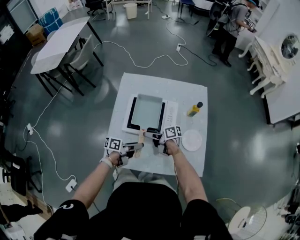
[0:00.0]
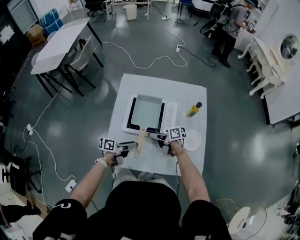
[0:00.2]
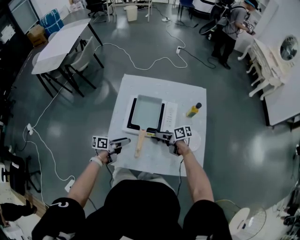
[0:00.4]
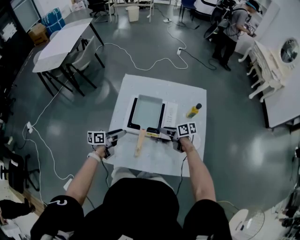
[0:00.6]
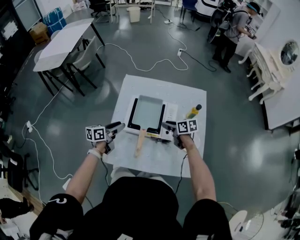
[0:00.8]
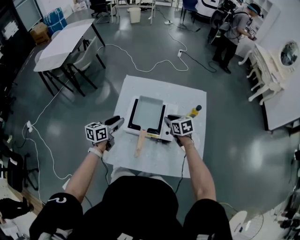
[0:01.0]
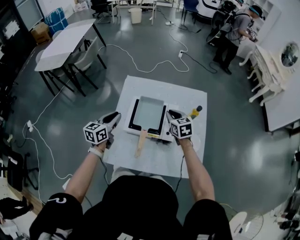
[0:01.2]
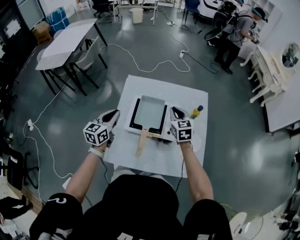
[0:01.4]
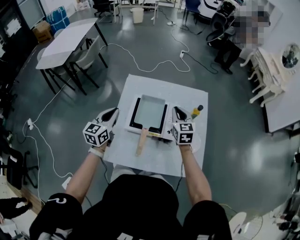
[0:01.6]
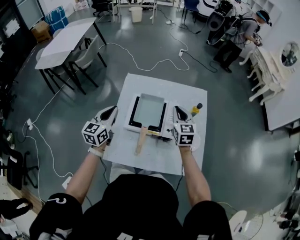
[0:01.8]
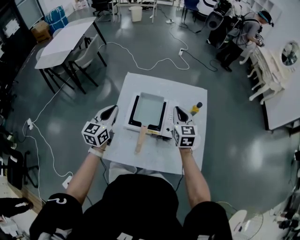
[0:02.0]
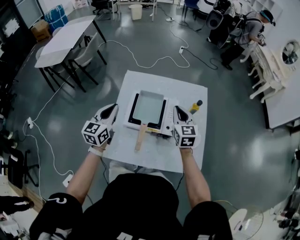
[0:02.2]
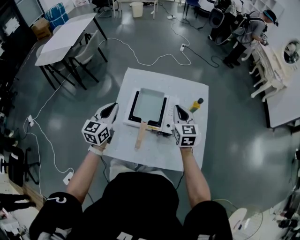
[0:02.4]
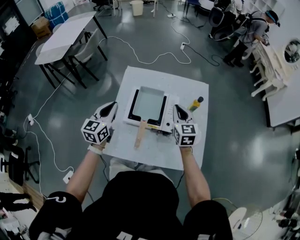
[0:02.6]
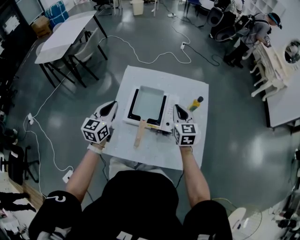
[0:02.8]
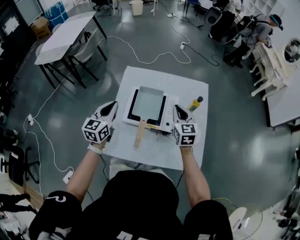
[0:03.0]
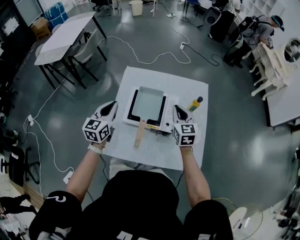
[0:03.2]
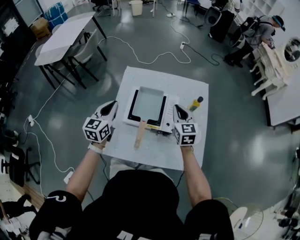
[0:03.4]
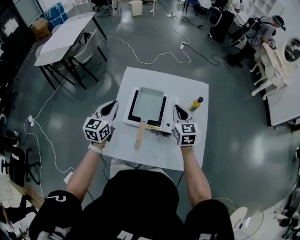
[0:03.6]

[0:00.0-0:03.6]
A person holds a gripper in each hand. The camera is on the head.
0:00.0 to 0:01.8: Both grippers move upward, roughly 20 cm. The left gripper swivels approximately 80 degrees, and closes; the right gripper changes its angle by about 80 degrees, and closes its fingers.
0:01.8 to 0:03.6: The grippers move only a little.

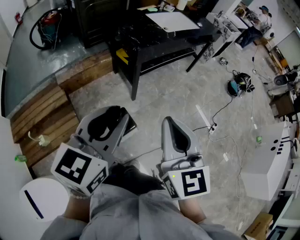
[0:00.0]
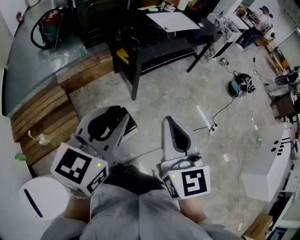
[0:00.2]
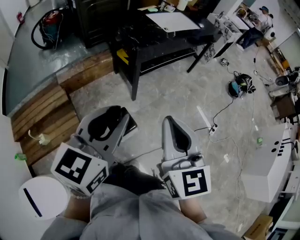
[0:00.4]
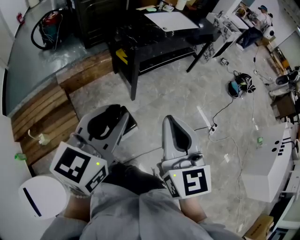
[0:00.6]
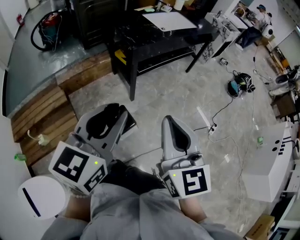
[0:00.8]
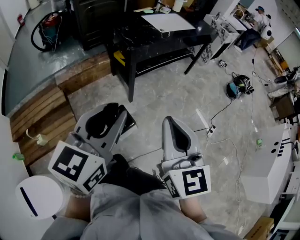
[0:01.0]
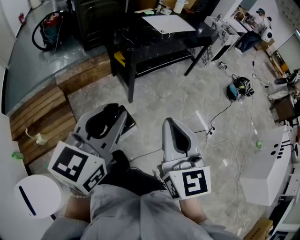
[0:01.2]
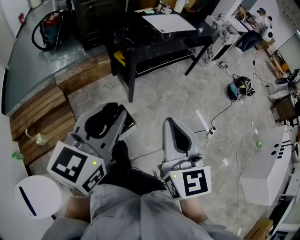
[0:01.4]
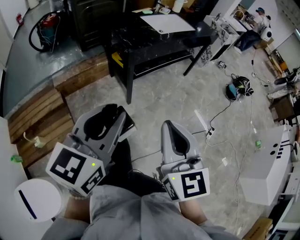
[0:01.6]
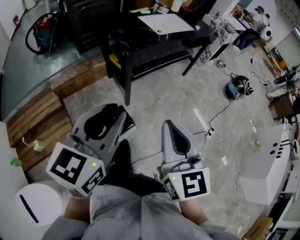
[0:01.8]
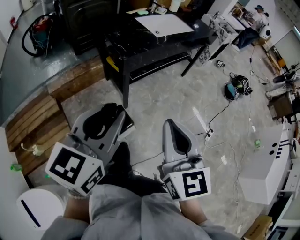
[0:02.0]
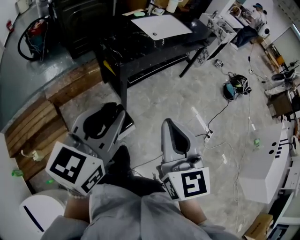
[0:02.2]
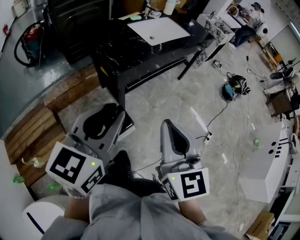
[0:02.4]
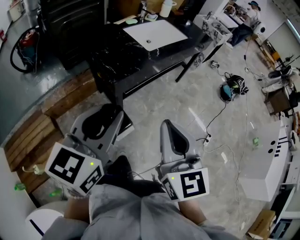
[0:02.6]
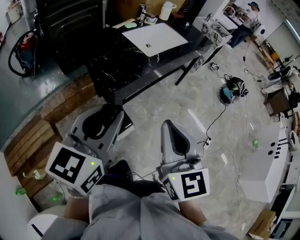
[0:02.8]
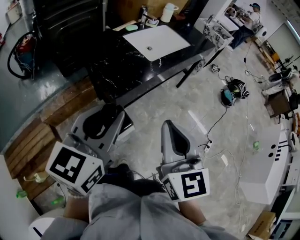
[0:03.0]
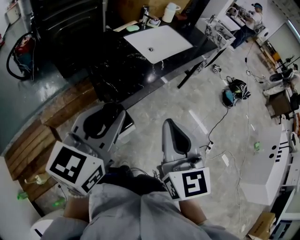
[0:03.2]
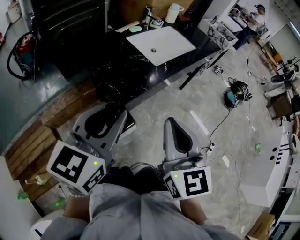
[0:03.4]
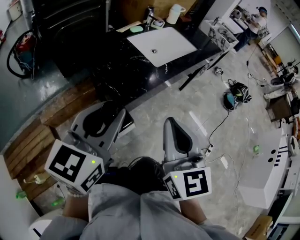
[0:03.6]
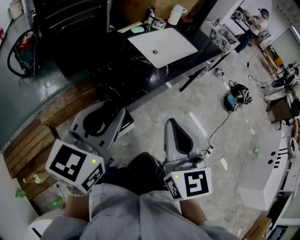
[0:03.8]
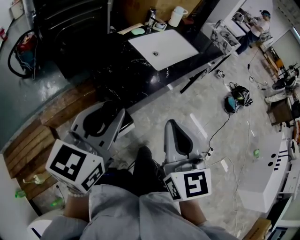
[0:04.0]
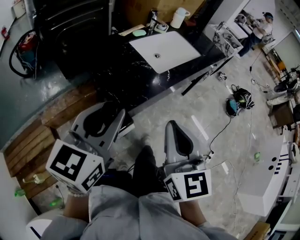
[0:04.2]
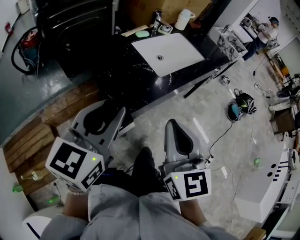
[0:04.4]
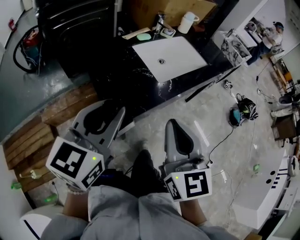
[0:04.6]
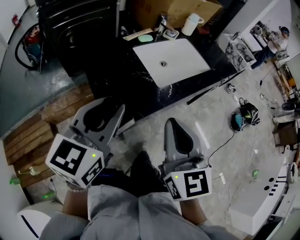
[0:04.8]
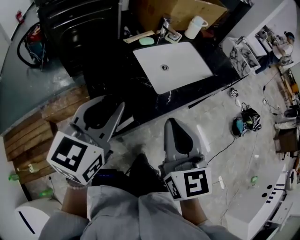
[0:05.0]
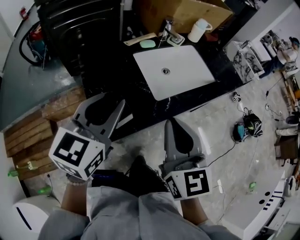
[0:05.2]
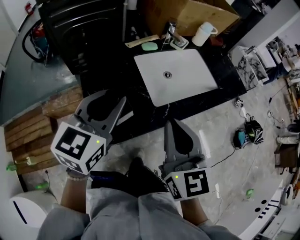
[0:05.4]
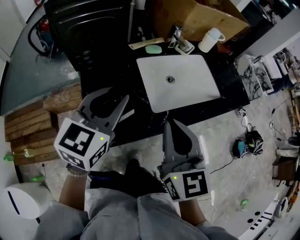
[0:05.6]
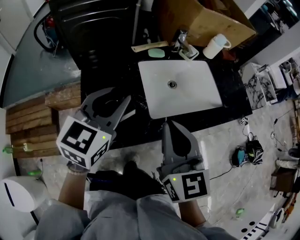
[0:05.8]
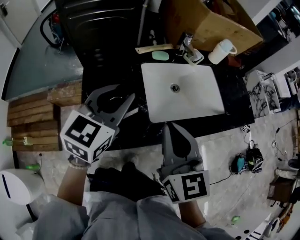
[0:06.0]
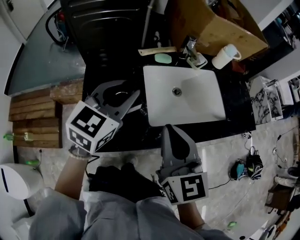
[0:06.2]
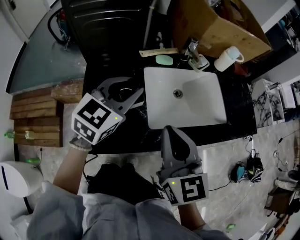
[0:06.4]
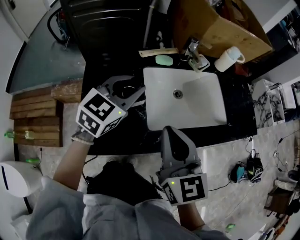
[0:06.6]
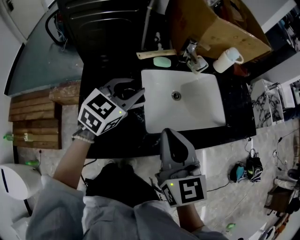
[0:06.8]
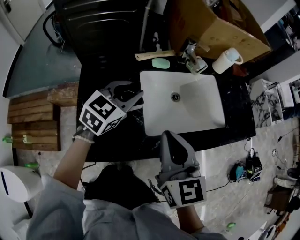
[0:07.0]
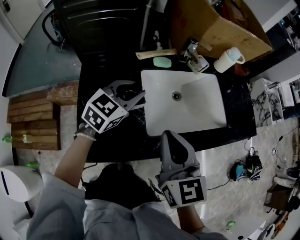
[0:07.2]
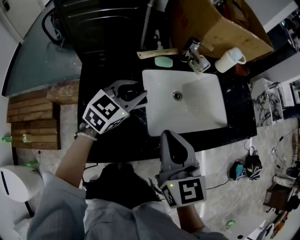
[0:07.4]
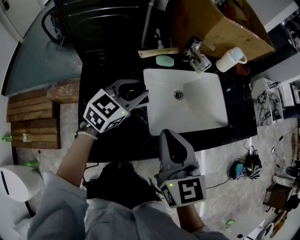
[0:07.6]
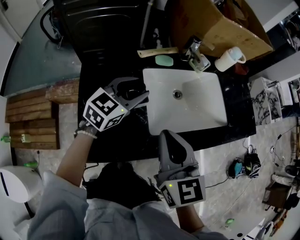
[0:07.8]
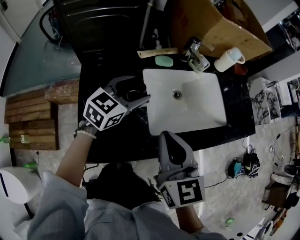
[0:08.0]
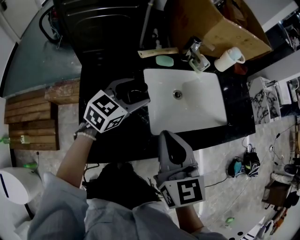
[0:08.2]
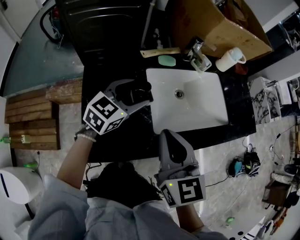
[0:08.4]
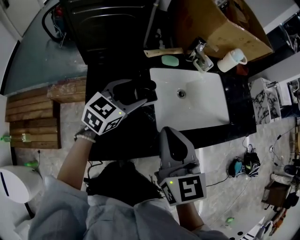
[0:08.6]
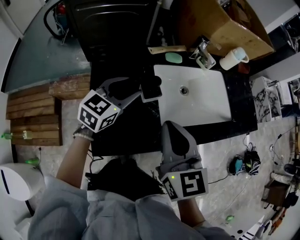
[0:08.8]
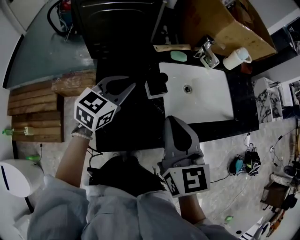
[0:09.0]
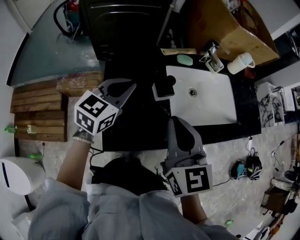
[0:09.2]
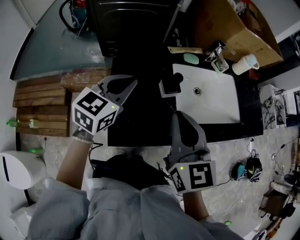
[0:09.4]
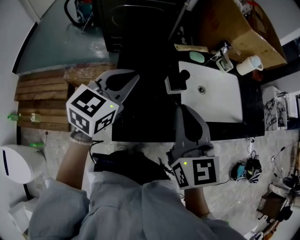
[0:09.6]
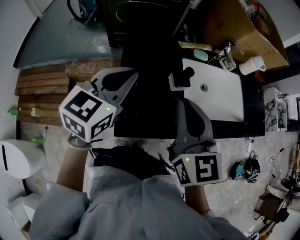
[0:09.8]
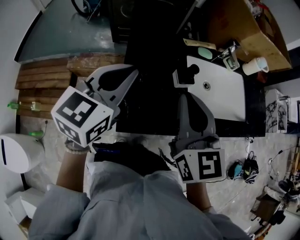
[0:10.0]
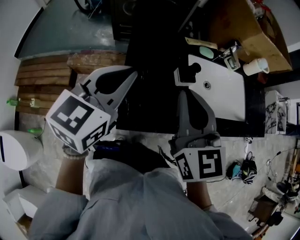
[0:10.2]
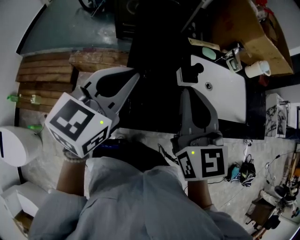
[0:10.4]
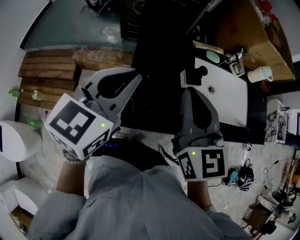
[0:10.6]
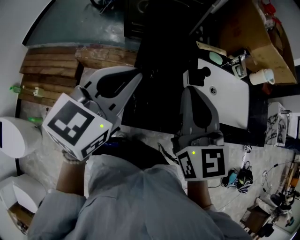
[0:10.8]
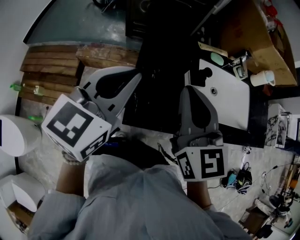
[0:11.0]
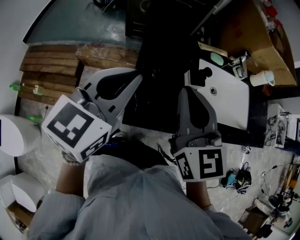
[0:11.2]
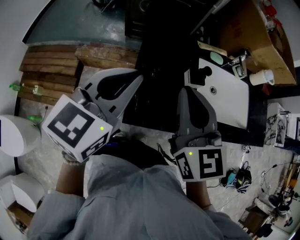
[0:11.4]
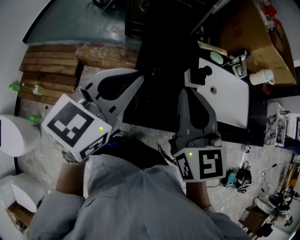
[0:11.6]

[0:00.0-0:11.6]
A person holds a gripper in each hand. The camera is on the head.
0:00.0 to 0:01.4: The two grippers go some 5 cm to the right.
0:01.4 to 0:02.8: Both grippers move forward, approximately 30 cm.
0:02.8 to 0:04.4: The two grippers go roughly 15 cm forward.
0:04.4 to 0:05.8: Both grippers travel together forward, approximately 25 cm. The right gripper rotates about 20 degrees.
0:05.8 to 0:07.2: The right gripper moves forward, approximately 5 cm. The left gripper shifts about 15 cm forward and downward.
0:07.2 to 0:08.8: The two grippers go some 5 cm to the left. The left gripper opens up.
0:08.8 to 0:10.2: The right gripper goes roughly 10 cm to the left. The left gripper moves backward, upward and to the left, roughly 20 cm, and closes.
0:10.2 to 0:11.6: The grippers make only small movements.

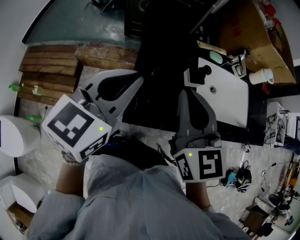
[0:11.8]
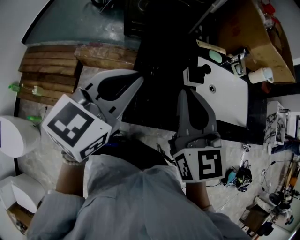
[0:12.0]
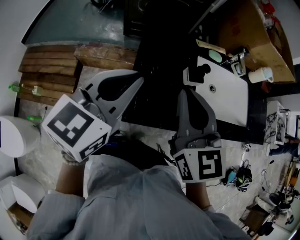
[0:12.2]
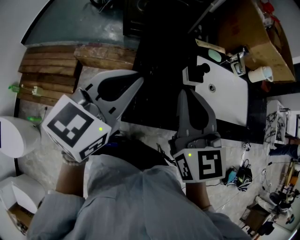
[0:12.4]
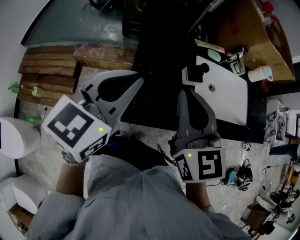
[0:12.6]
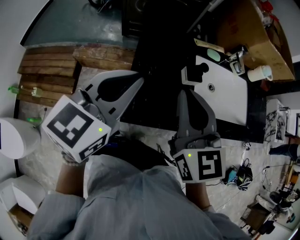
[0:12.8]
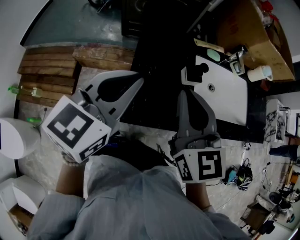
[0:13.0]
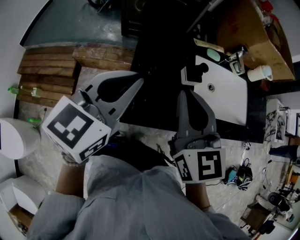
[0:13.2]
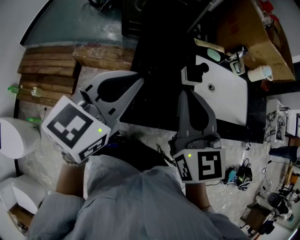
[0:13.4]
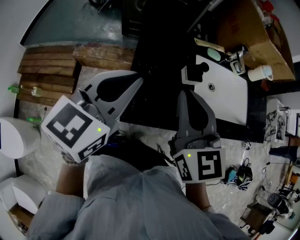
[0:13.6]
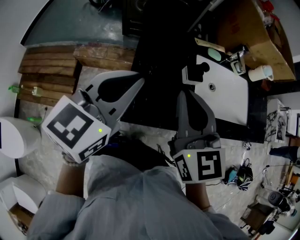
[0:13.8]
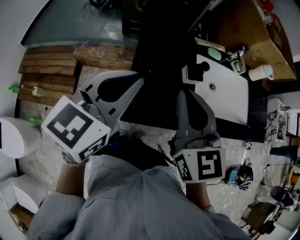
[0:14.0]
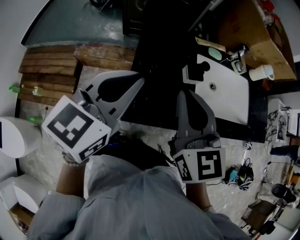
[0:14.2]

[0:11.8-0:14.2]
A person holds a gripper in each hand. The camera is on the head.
0:11.8 to 0:14.2: Neither gripper changes place.

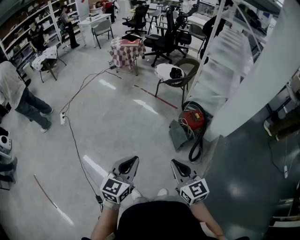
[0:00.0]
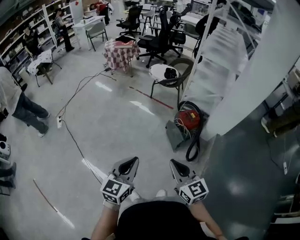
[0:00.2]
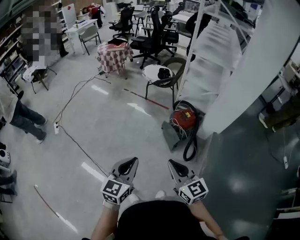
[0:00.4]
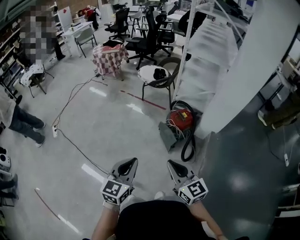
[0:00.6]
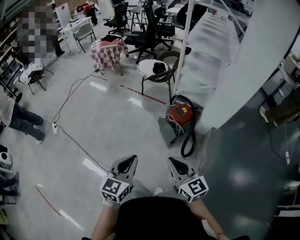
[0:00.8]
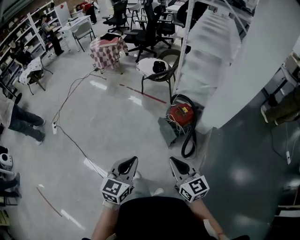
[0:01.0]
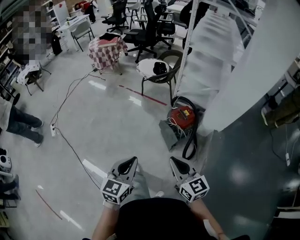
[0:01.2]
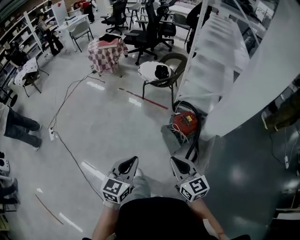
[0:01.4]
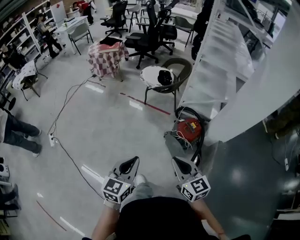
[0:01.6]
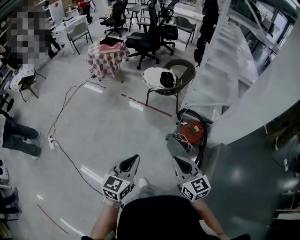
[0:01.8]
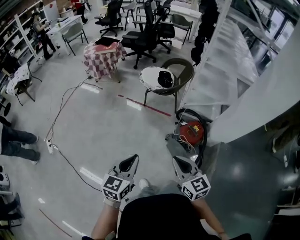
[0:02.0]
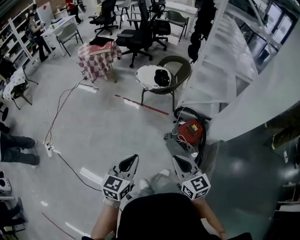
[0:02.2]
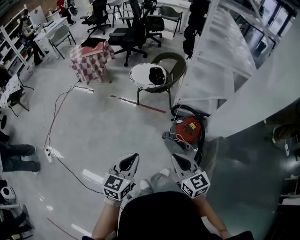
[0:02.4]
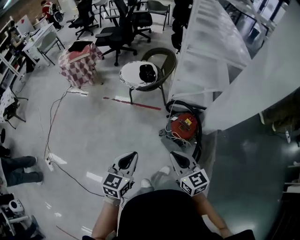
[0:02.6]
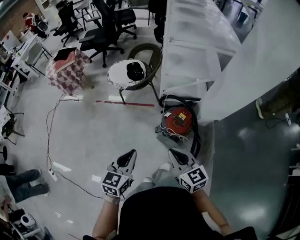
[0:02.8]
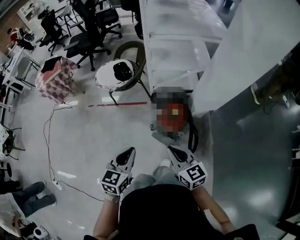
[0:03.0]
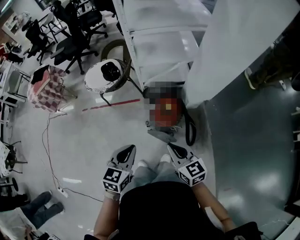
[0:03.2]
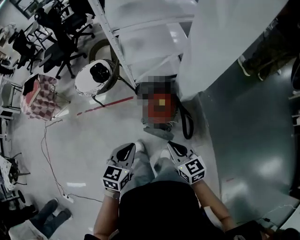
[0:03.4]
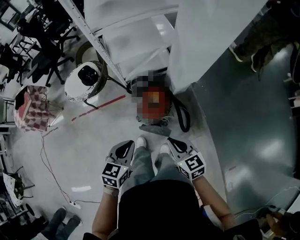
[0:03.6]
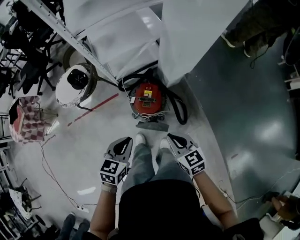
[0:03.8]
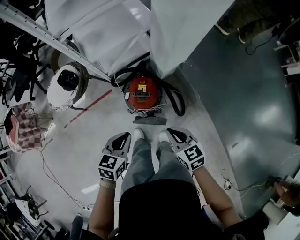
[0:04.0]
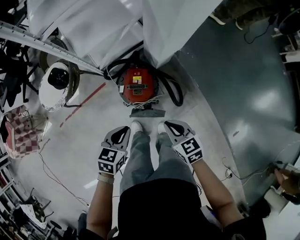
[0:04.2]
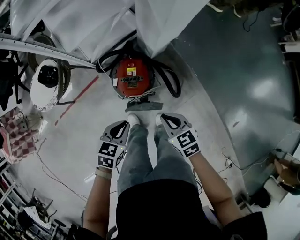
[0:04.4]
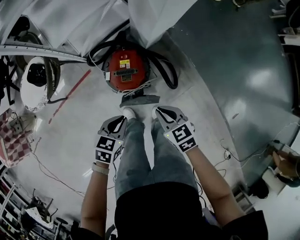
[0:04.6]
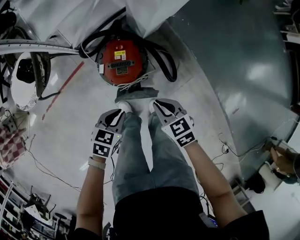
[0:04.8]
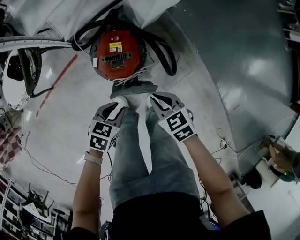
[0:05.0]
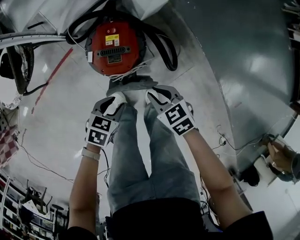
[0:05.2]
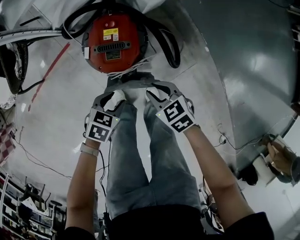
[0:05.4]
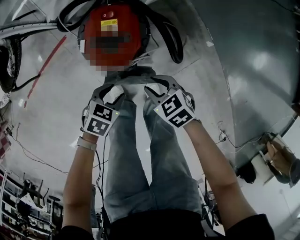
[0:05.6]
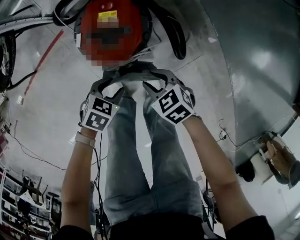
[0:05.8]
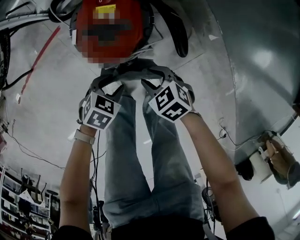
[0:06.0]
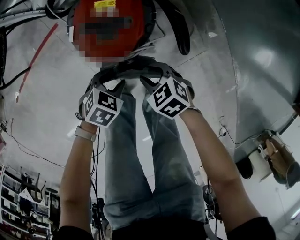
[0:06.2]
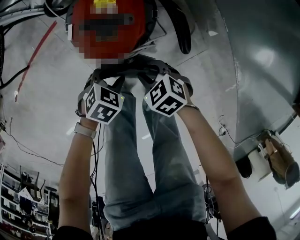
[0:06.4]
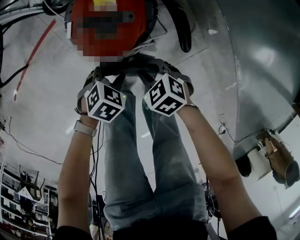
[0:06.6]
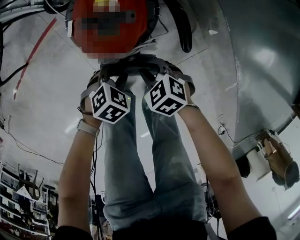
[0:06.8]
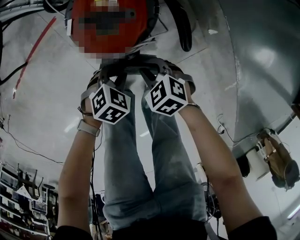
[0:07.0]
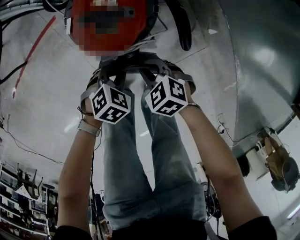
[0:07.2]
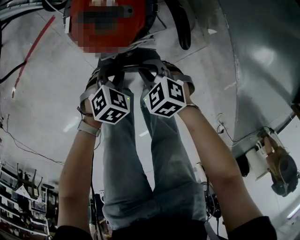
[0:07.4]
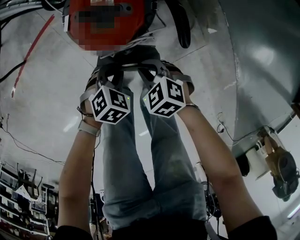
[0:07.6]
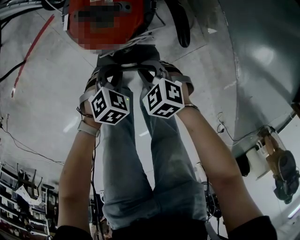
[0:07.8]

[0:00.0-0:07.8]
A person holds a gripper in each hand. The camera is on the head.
0:00.0 to 0:01.6: The two grippers go about 25 cm forward.
0:01.6 to 0:03.2: The right gripper ends up approximately 25 cm from where it was, and changes its angle by some 30 degrees. Meanwhile the left gripper ends up some 30 cm from where it was, and swivels roughly 30 degrees.
0:03.2 to 0:04.6: The grippers both shift downward by about 25 cm. The left gripper changes its angle by about 40 degrees. Meanwhile the right gripper swivels about 30 degrees.
0:04.6 to 0:06.2: The two grippers go approximately 35 cm downward. The right gripper swivels about 30 degrees, and opens. The left gripper turns by approximately 20 degrees, and opens its fingers.
0:06.2 to 0:07.8: The right gripper closes its fingers. Meanwhile the left gripper closes its fingers.
